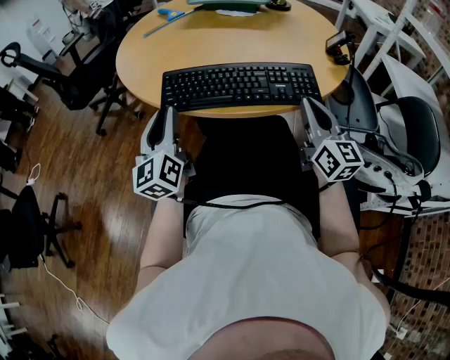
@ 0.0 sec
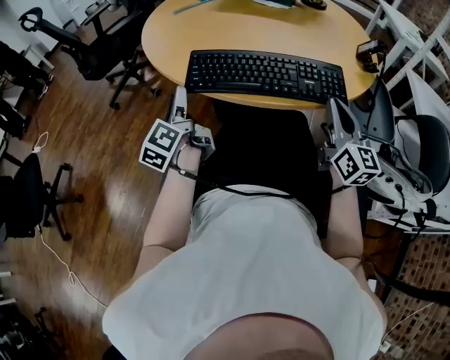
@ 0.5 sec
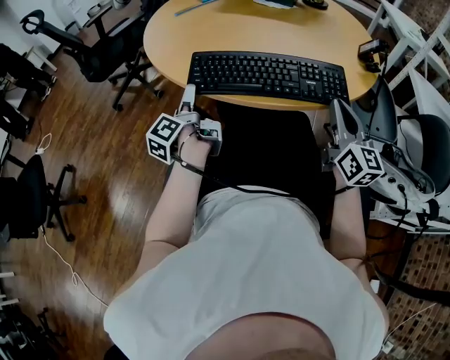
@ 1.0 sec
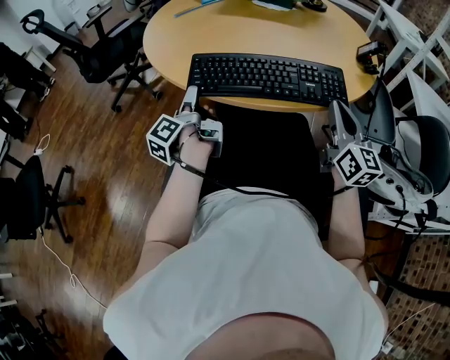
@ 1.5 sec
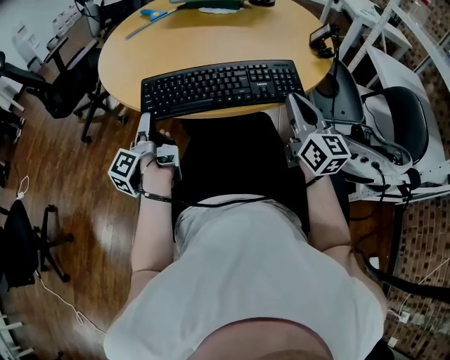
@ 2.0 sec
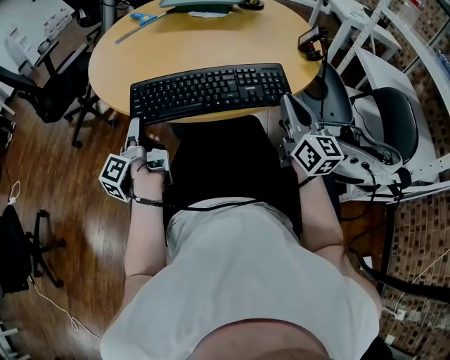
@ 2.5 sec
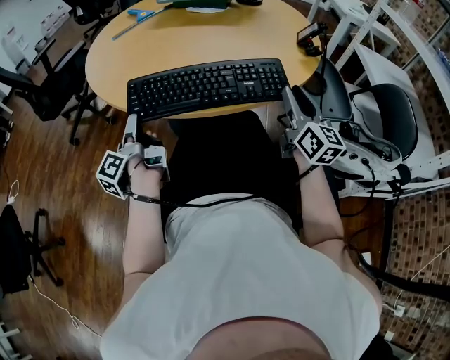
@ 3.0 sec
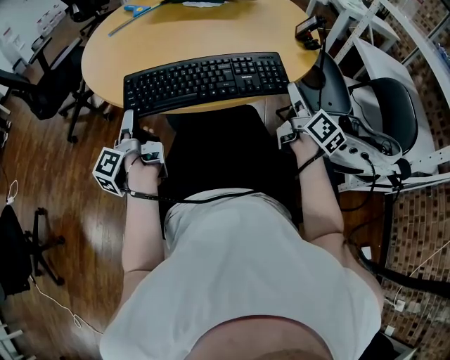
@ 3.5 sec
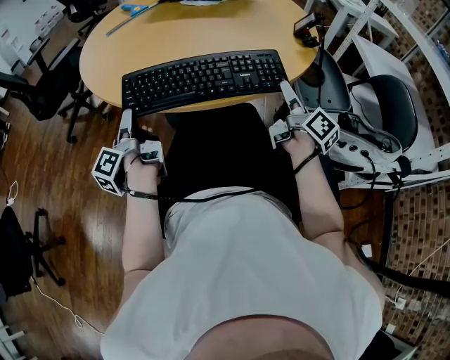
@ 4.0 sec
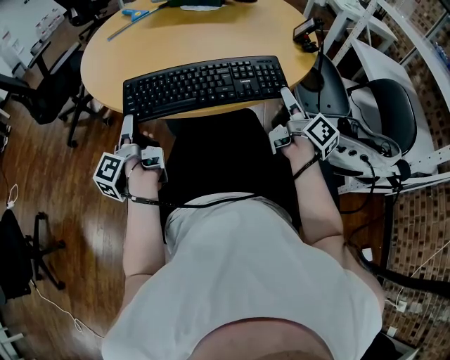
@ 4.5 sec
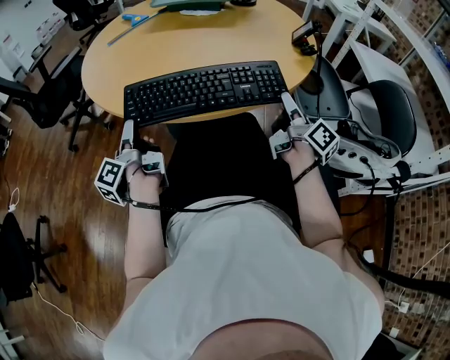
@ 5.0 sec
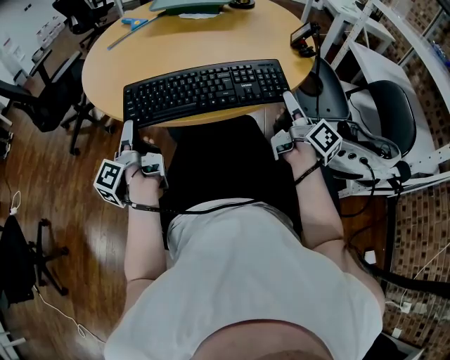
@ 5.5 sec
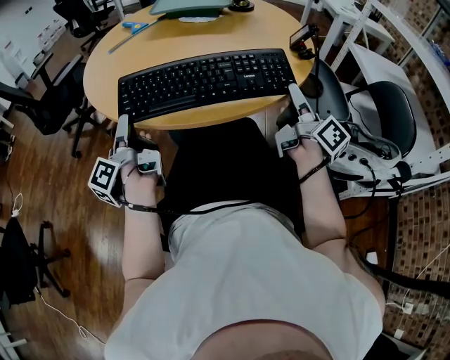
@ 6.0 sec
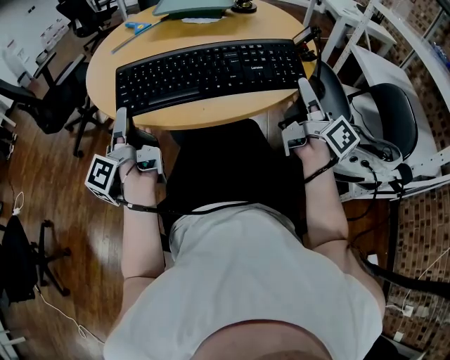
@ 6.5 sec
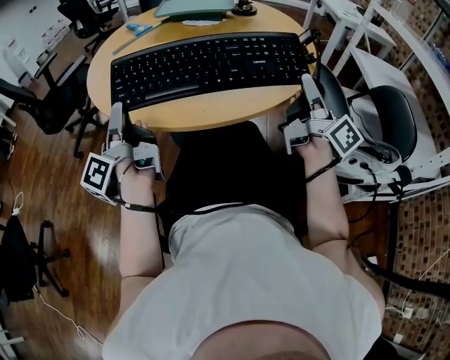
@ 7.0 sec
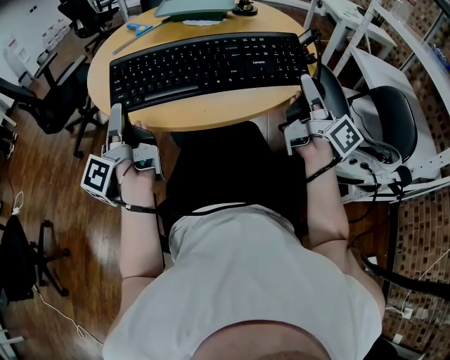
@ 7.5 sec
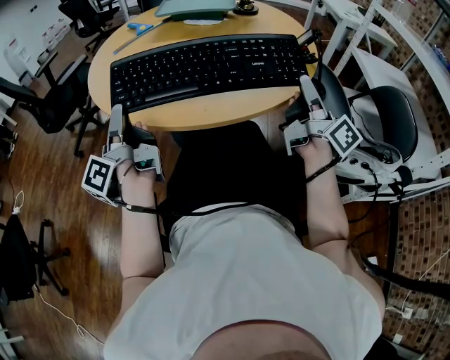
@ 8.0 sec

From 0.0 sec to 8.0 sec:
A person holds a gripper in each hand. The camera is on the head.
From 2.0 sec to 4.0 sec: The right gripper changes place by some 10 cm, twists approximately 50 degrees clockwise, seen from behind, and opens.
From 4.0 sec to 6.0 sec: The right gripper moves upward, roughly 5 cm.
From 6.0 sec to 8.0 sec: The right gripper moves upward, roughly 5 cm.

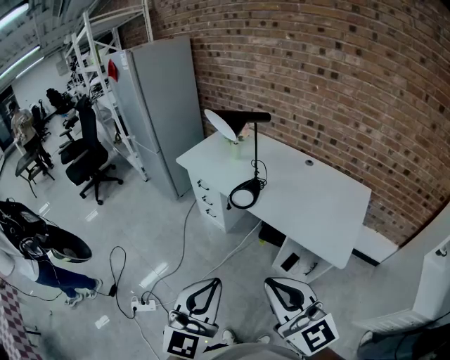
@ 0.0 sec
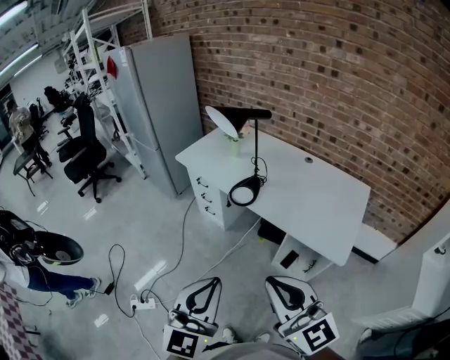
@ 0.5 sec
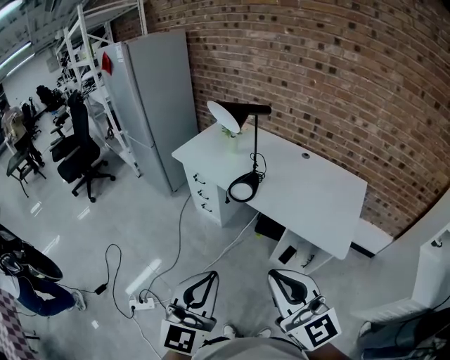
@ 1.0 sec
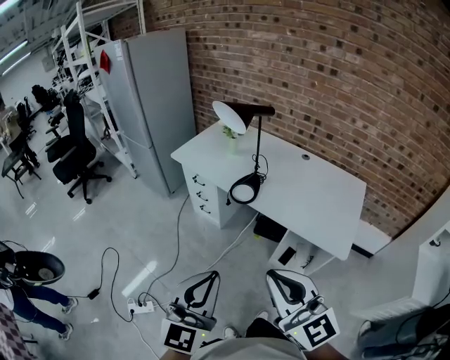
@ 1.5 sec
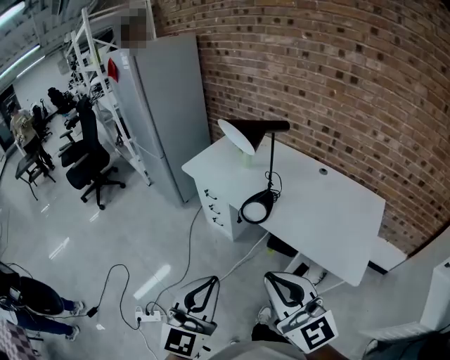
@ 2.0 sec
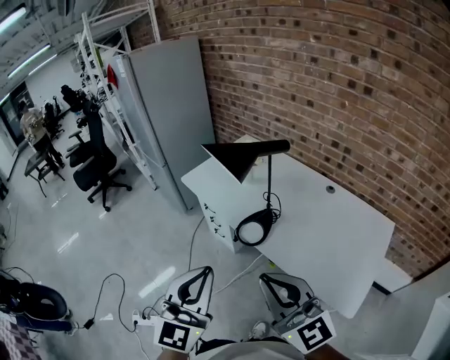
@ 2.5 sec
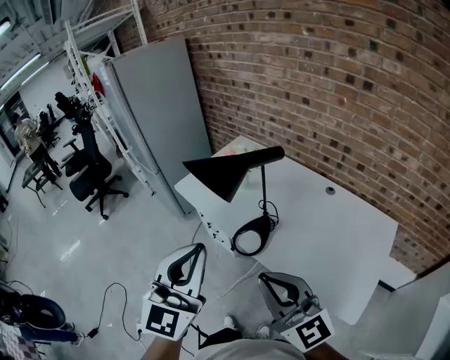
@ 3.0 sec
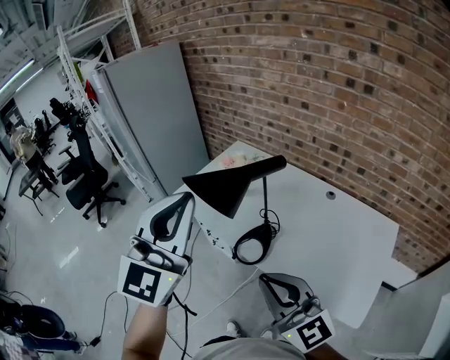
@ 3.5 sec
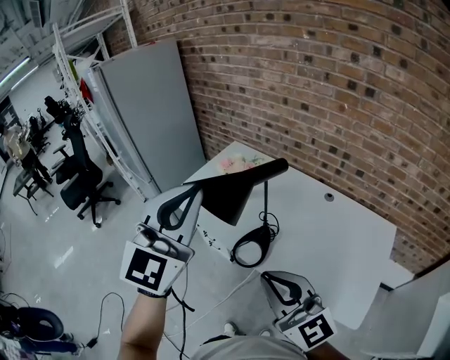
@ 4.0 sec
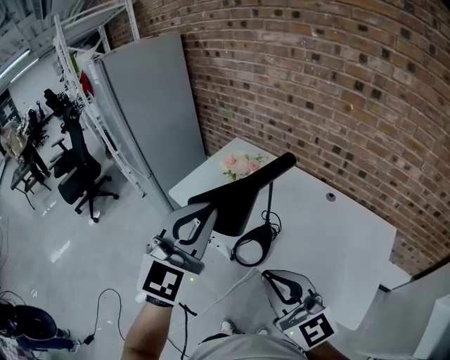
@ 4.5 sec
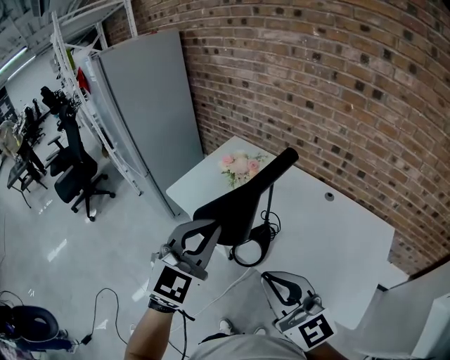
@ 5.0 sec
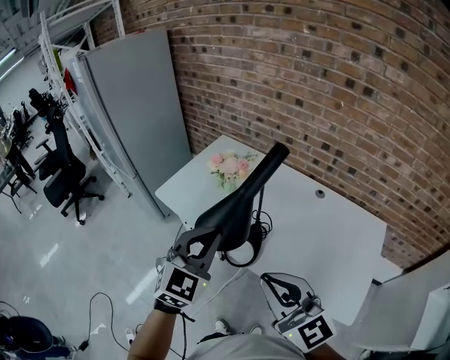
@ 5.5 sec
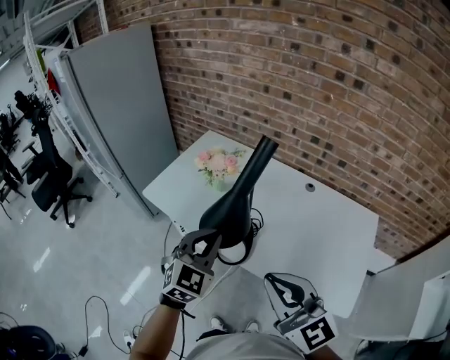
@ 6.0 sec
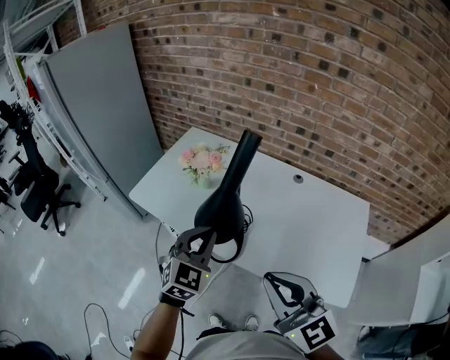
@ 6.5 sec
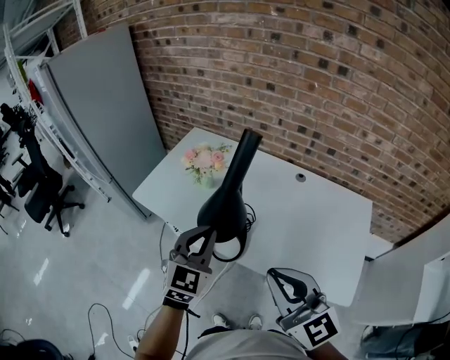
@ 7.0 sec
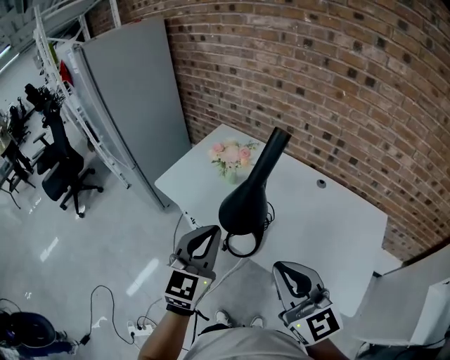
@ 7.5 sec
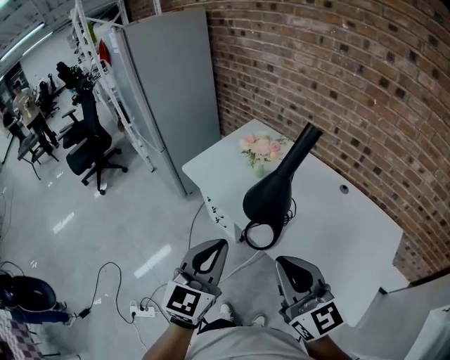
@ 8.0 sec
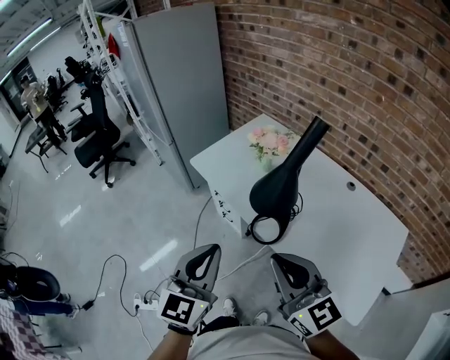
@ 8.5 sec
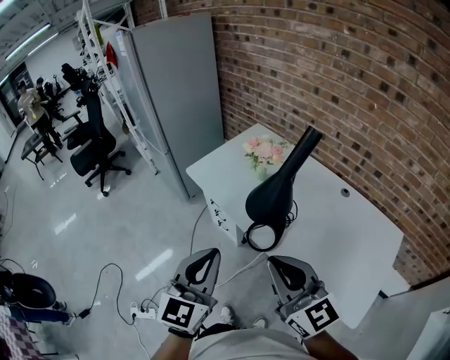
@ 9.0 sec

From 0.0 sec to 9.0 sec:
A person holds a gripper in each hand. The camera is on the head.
From 0.0 sec to 2.0 sec: Both grippers move forward, some 10 cm.
From 2.0 sec to 4.5 sec: The two grippers go some 30 cm forward. The left gripper turns by about 20 degrees.
From 4.5 sec to 7.0 sec: The left gripper moves downward, some 20 cm, and rotates about 20 degrees.
From 7.0 sec to 9.0 sec: The left gripper shifts some 20 cm backward, to the left and upward, and rotates roughly 30 degrees; the right gripper moves to the left, some 10 cm, and changes its angle by about 20 degrees.

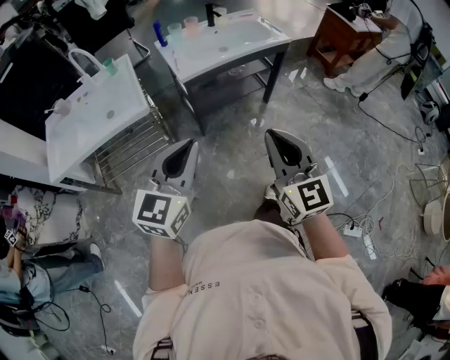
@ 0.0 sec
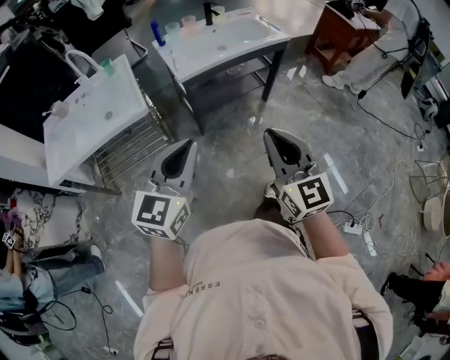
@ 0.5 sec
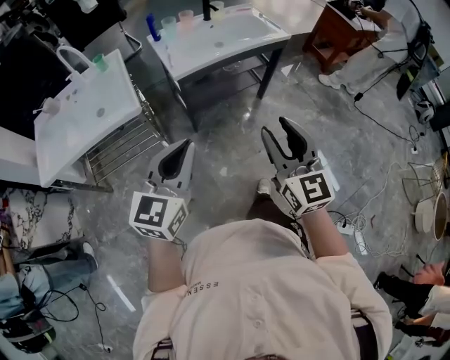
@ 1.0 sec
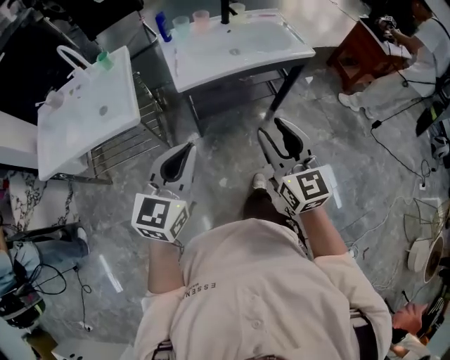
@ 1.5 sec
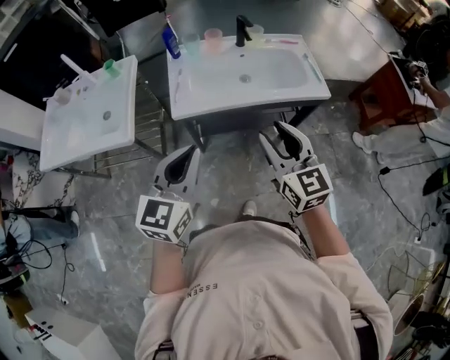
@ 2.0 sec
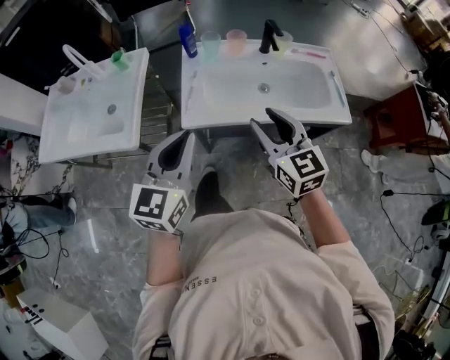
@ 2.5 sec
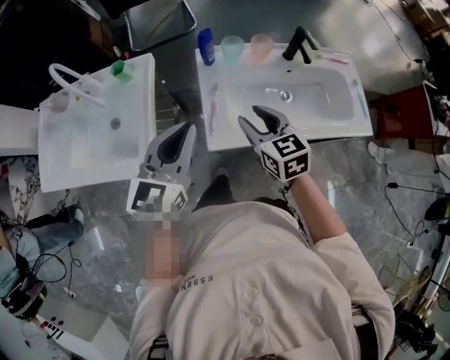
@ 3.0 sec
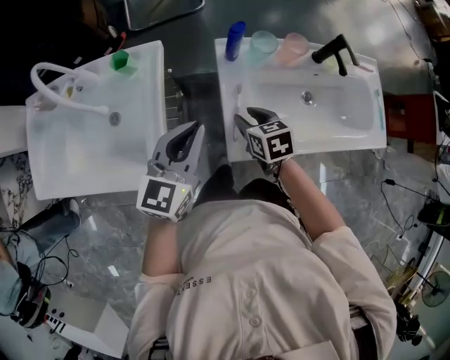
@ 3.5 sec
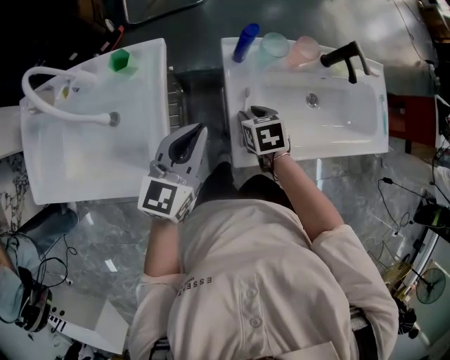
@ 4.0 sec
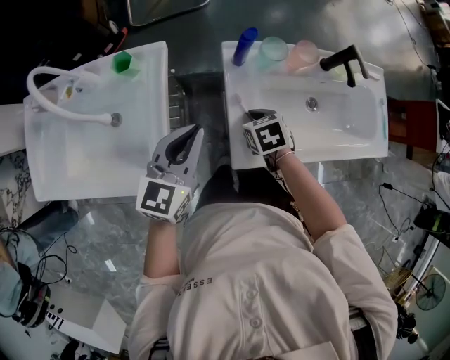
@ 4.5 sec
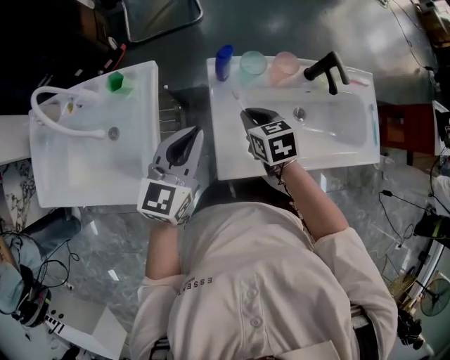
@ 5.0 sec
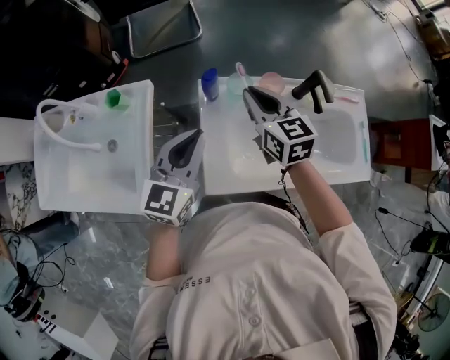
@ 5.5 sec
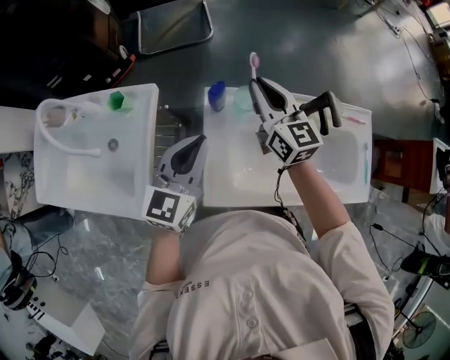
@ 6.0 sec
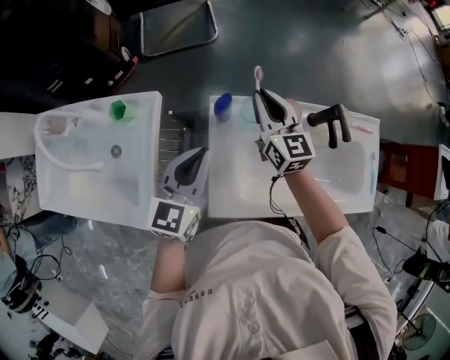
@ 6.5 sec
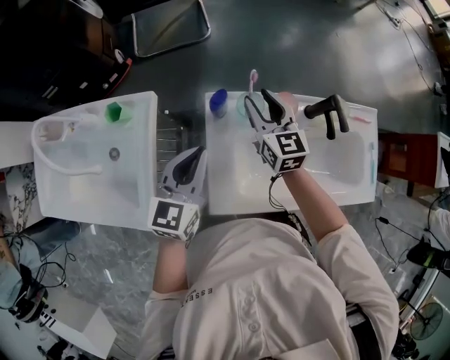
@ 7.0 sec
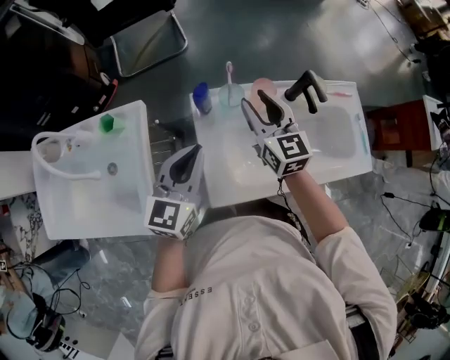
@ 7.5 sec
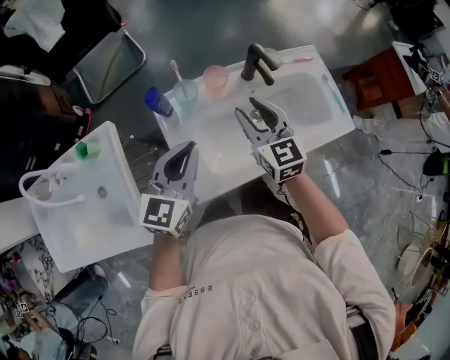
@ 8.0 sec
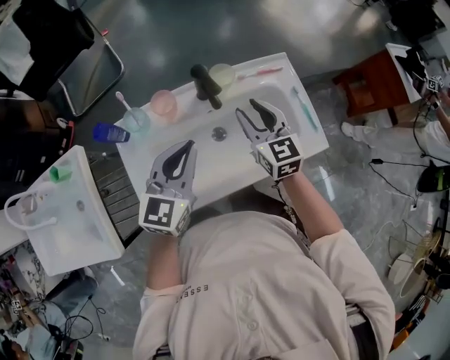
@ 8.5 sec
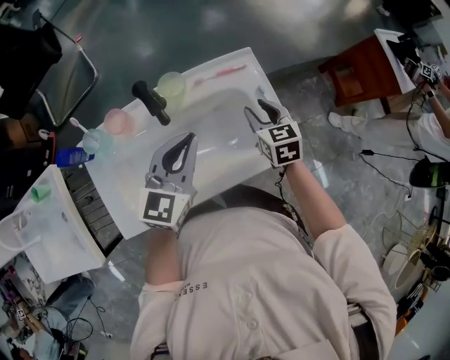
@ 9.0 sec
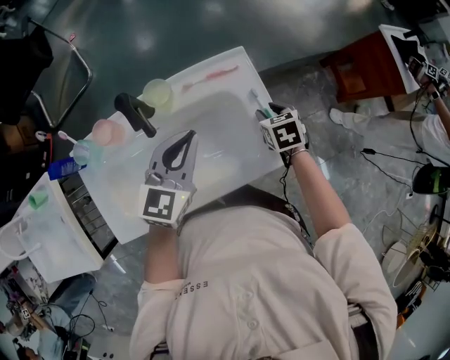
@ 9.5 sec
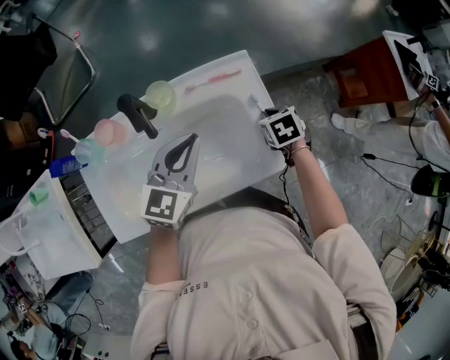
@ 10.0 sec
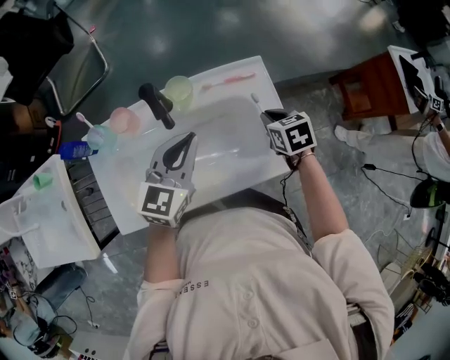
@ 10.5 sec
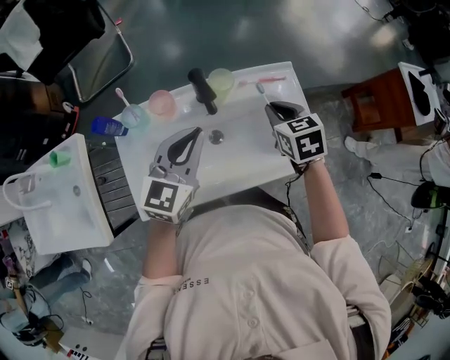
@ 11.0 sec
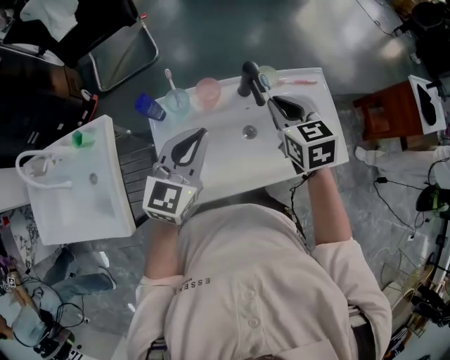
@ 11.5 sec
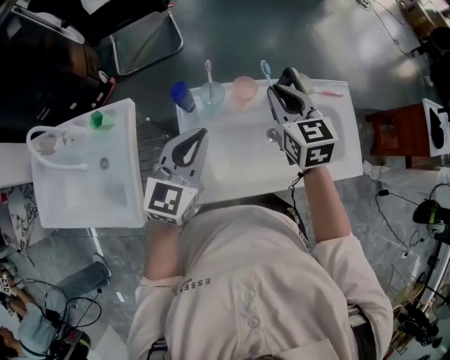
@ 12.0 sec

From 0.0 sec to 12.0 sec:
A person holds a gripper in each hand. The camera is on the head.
From 0.0 sec to 2.0 sec: Both grippers travel together forward, about 35 cm. The right gripper rotates roughly 20 degrees, and opens its fingers. The left gripper changes its angle by approximately 20 degrees.
From 2.0 sec to 4.0 sec: The left gripper is displaced forward and to the left by some 40 cm; the right gripper moves forward, downward and to the left, approximately 50 cm, and tips its fingers downward by about 50 degrees.
From 4.0 sec to 6.0 sec: The right gripper travels upward and forward by approximately 30 cm, points its fingers some 60 degrees further upward, and closes. Meanwhile the left gripper goes some 15 cm to the right, forward and upward.
From 6.0 sec to 8.0 sec: The right gripper goes some 20 cm backward and to the right, swivels some 30 degrees, and opens up, while the left gripper moves to the right, roughly 10 cm, and changes its angle by roughly 20 degrees.
From 8.0 sec to 10.0 sec: The right gripper shifts approximately 50 cm to the right, downward and forward, angles its fingers downward, by approximately 50 degrees, and closes. The left gripper shifts about 35 cm to the right and forward.
From 10.0 sec to 12.0 sec: The right gripper goes about 50 cm to the left and upward, and angles its fingers upward, by some 40 degrees, while the left gripper goes approximately 35 cm to the left.
